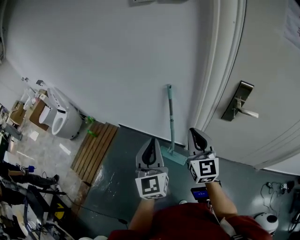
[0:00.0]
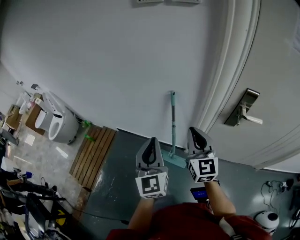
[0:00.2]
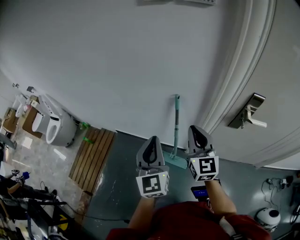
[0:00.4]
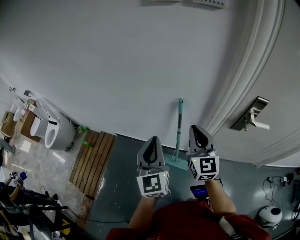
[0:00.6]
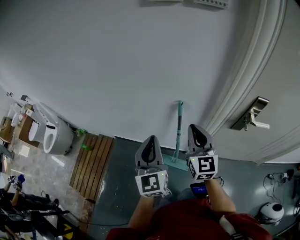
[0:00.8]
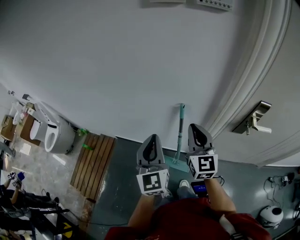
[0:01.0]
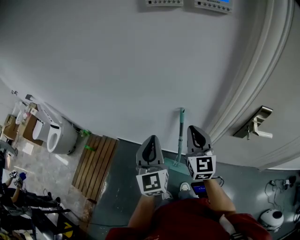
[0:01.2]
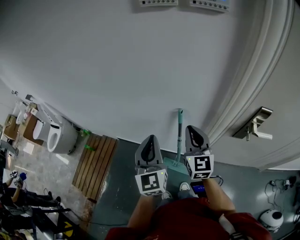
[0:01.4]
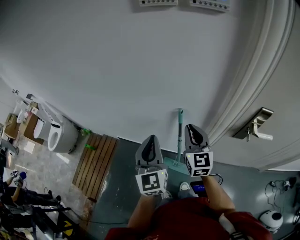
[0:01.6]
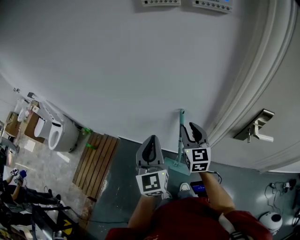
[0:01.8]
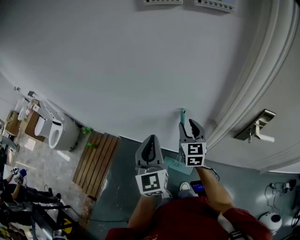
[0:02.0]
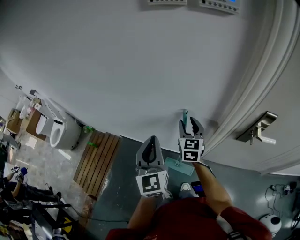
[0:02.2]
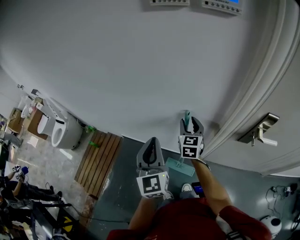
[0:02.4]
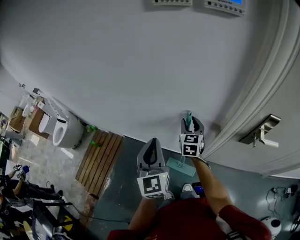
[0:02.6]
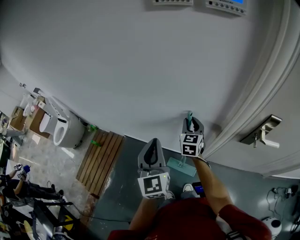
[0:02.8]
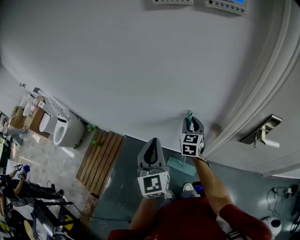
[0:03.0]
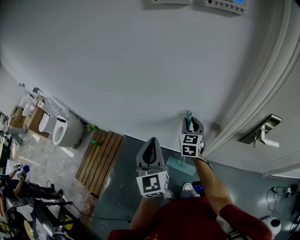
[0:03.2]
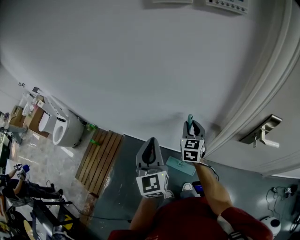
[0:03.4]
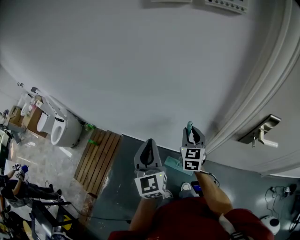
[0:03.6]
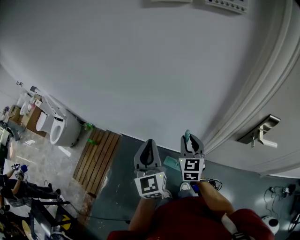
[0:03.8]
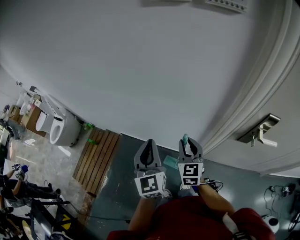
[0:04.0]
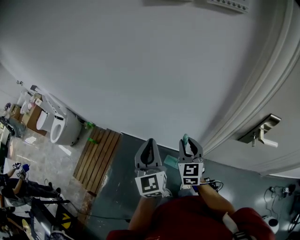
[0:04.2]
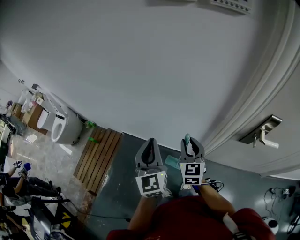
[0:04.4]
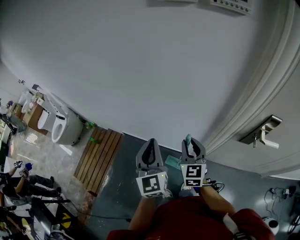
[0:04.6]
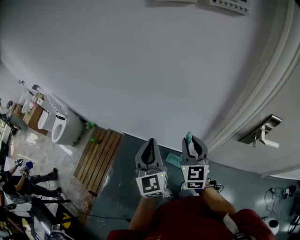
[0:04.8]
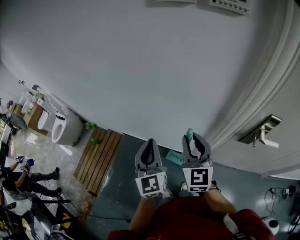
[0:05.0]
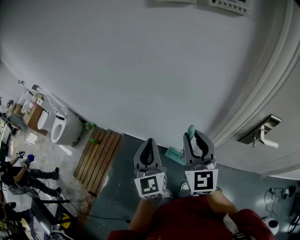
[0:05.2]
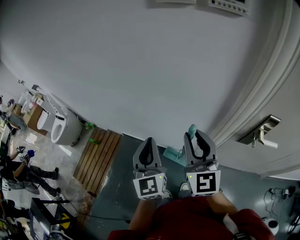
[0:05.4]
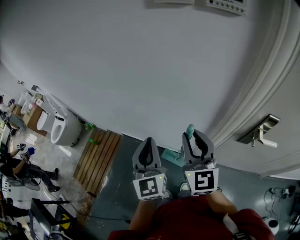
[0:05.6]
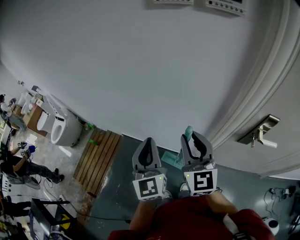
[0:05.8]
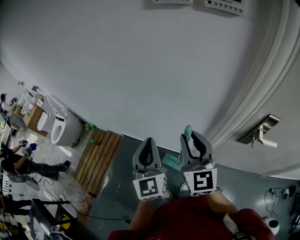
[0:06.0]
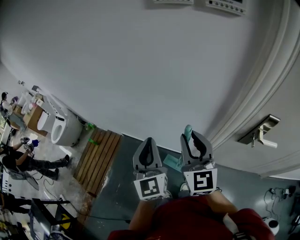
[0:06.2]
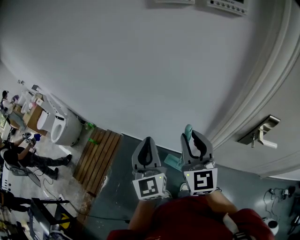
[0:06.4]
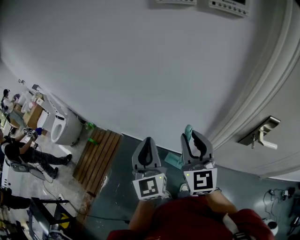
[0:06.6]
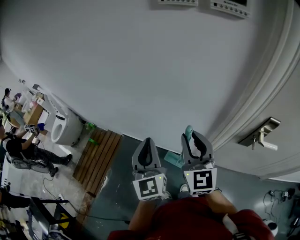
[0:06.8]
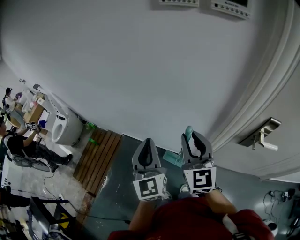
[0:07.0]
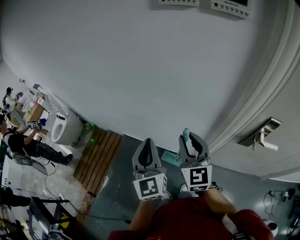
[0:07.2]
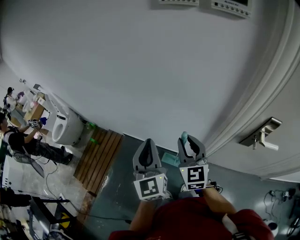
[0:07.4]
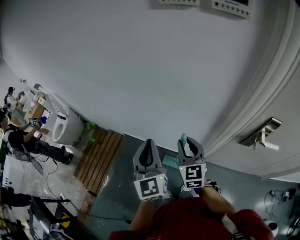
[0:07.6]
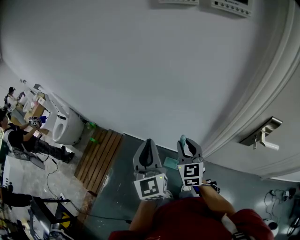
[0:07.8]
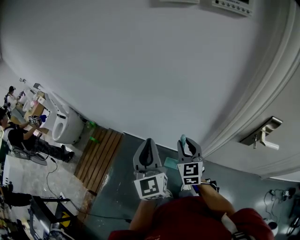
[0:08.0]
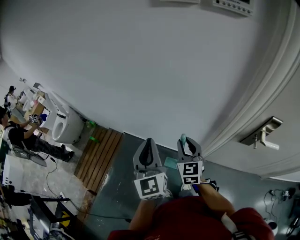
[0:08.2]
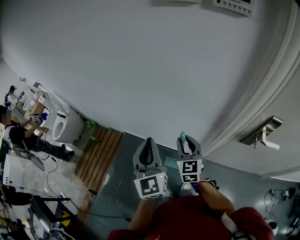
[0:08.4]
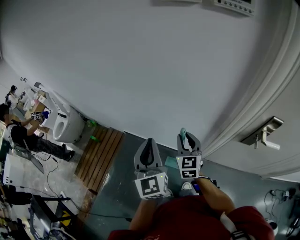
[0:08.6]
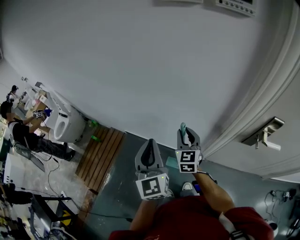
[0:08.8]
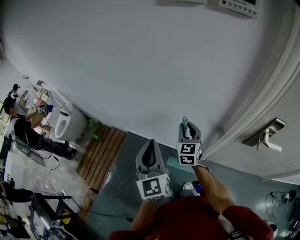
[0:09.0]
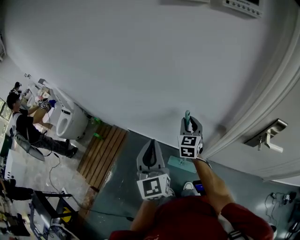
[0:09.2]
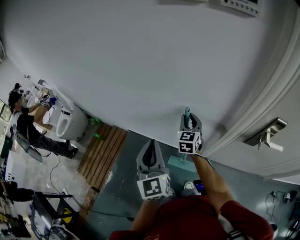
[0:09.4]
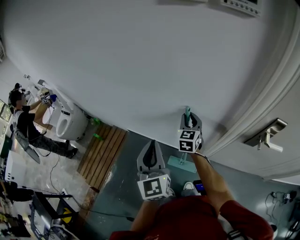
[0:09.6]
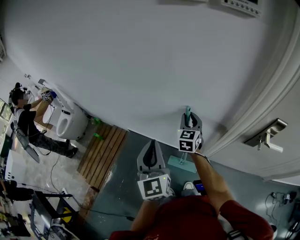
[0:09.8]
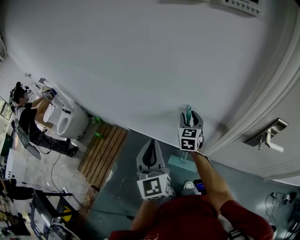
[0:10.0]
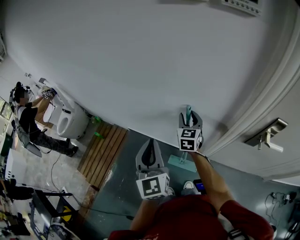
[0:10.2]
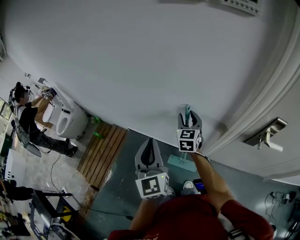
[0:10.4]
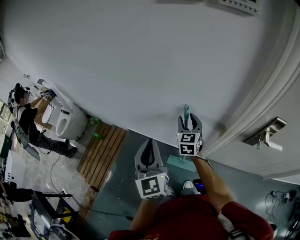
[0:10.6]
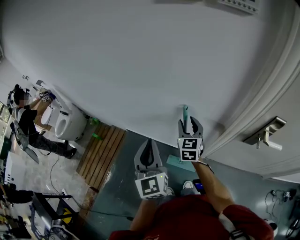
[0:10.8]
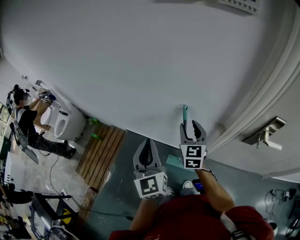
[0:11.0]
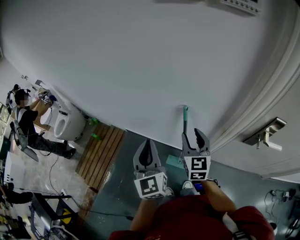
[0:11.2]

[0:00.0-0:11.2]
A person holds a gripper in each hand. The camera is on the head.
0:00.0 to 0:01.6: The grippers both shift forward by approximately 20 cm.
0:01.6 to 0:03.2: The right gripper shifts roughly 15 cm forward and downward, and opens.
0:03.2 to 0:04.8: The right gripper shifts roughly 15 cm backward and upward.
0:04.8 to 0:06.4: The right gripper is displaced upward by roughly 10 cm.
0:06.4 to 0:08.0: The right gripper shifts about 15 cm downward.
0:08.0 to 0:09.6: The right gripper is displaced forward by about 15 cm.
0:09.6 to 0:11.2: The right gripper is displaced backward by some 10 cm.

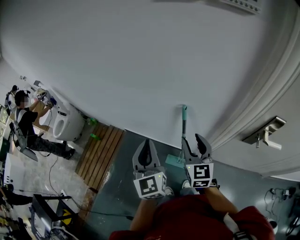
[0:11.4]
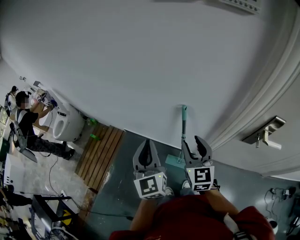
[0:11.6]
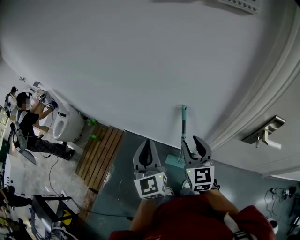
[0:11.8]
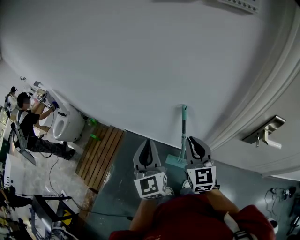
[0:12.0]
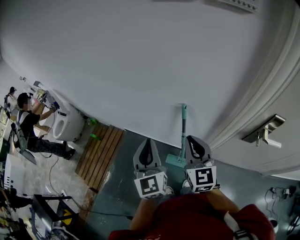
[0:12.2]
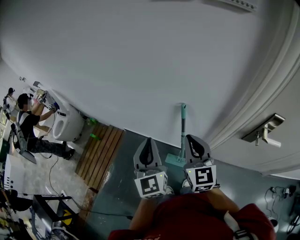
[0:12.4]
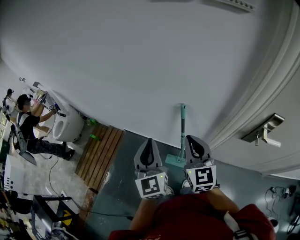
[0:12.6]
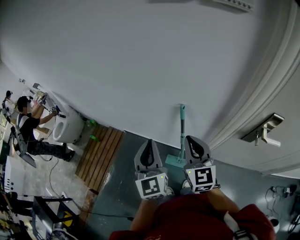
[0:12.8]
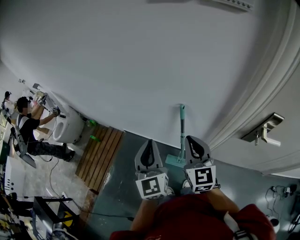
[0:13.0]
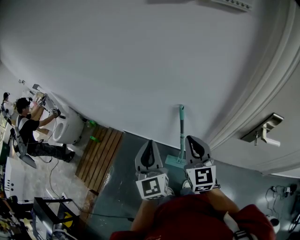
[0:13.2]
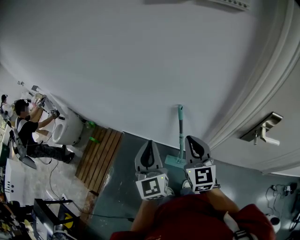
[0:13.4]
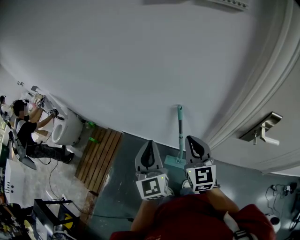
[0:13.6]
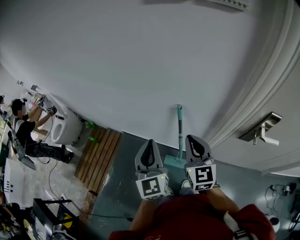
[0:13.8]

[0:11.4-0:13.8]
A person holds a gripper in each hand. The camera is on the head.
0:11.4 to 0:12.6: The right gripper changes place by some 5 cm, and closes up.
0:12.6 to 0:13.8: The grippers make only small movements.

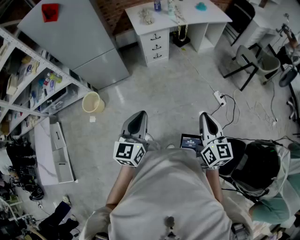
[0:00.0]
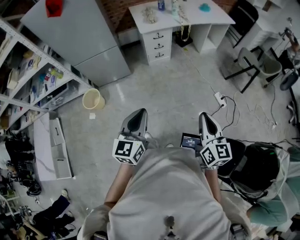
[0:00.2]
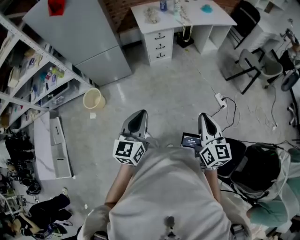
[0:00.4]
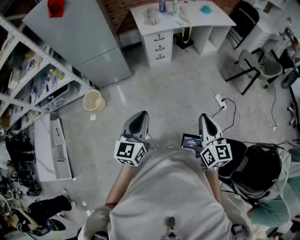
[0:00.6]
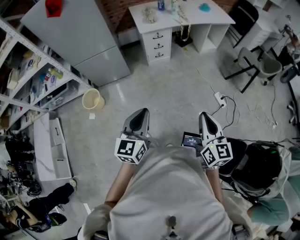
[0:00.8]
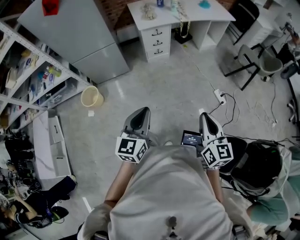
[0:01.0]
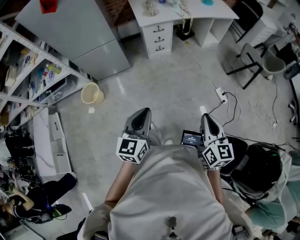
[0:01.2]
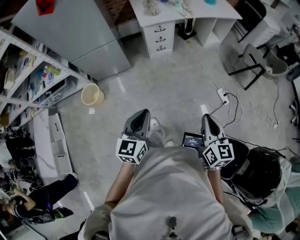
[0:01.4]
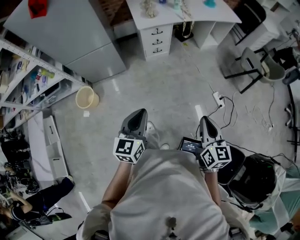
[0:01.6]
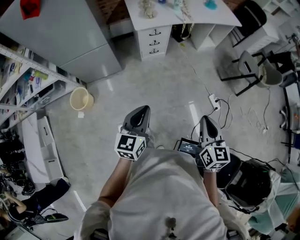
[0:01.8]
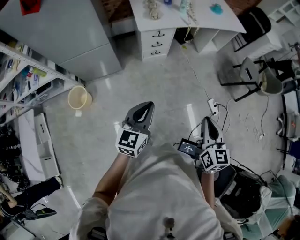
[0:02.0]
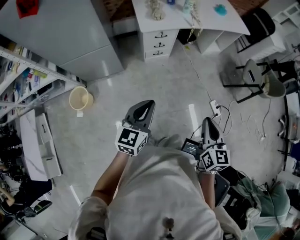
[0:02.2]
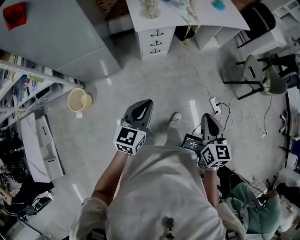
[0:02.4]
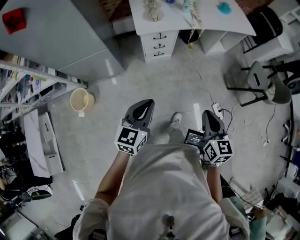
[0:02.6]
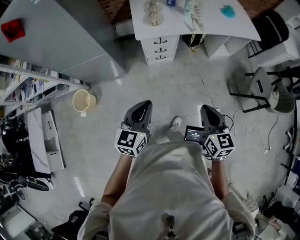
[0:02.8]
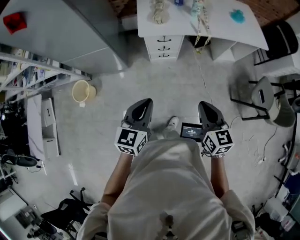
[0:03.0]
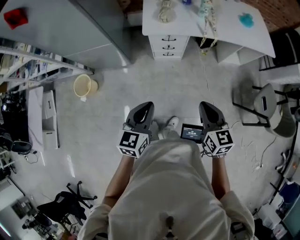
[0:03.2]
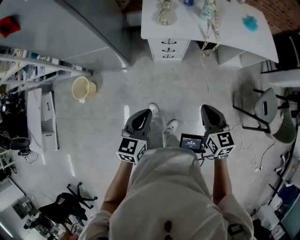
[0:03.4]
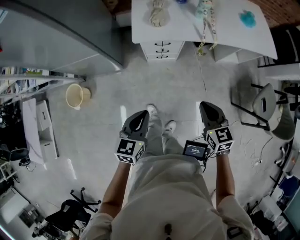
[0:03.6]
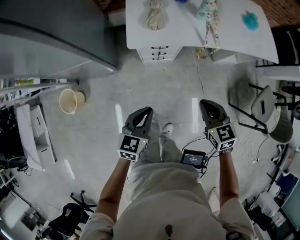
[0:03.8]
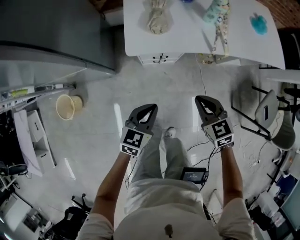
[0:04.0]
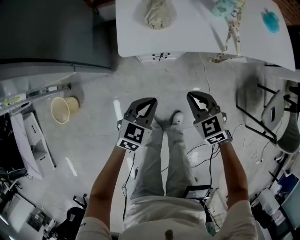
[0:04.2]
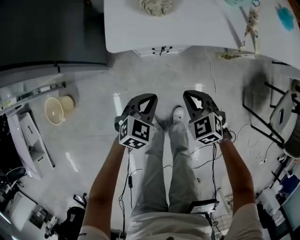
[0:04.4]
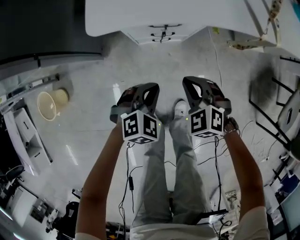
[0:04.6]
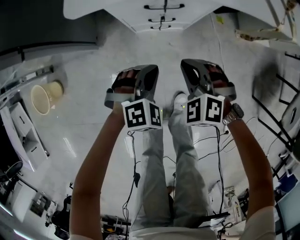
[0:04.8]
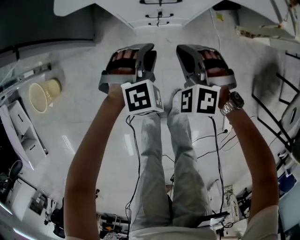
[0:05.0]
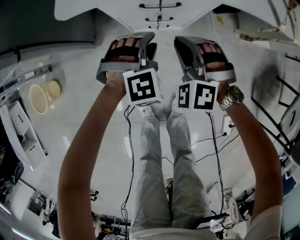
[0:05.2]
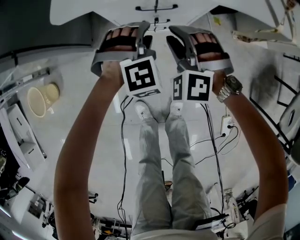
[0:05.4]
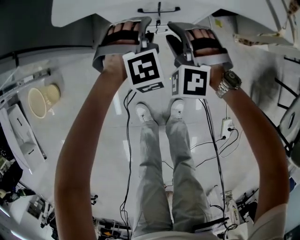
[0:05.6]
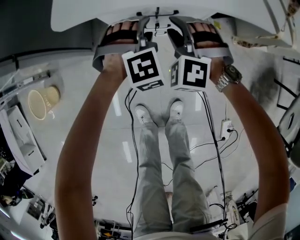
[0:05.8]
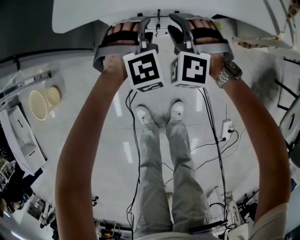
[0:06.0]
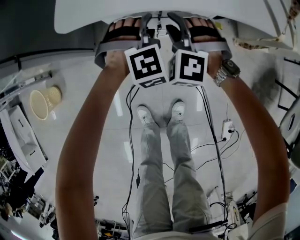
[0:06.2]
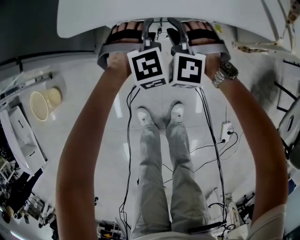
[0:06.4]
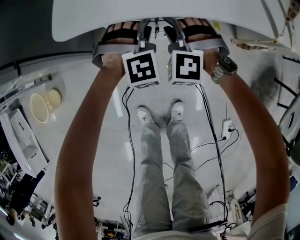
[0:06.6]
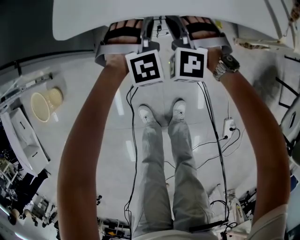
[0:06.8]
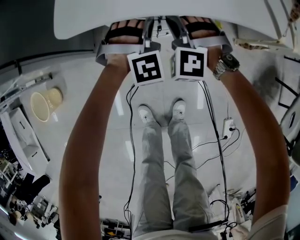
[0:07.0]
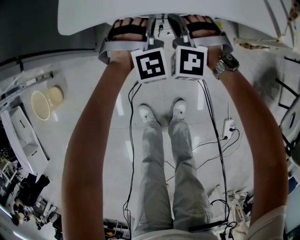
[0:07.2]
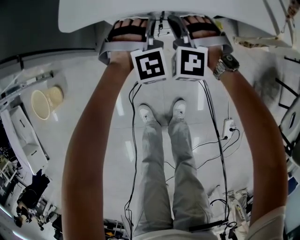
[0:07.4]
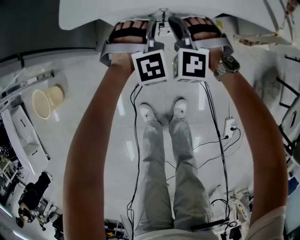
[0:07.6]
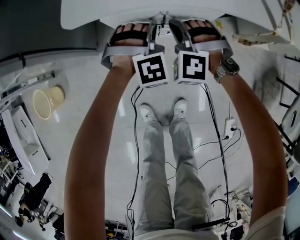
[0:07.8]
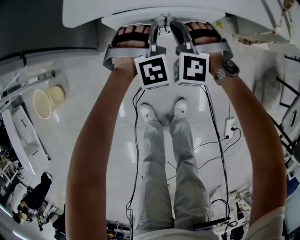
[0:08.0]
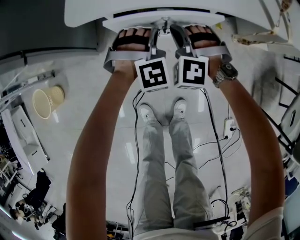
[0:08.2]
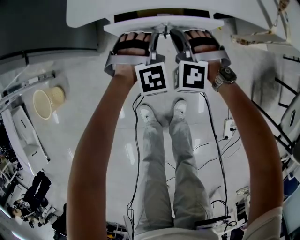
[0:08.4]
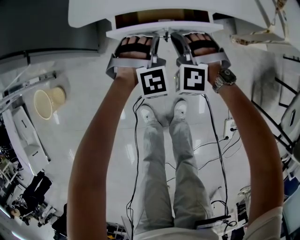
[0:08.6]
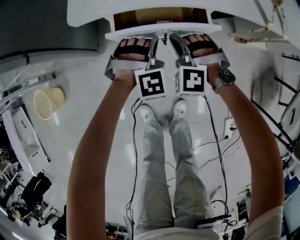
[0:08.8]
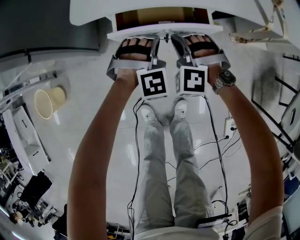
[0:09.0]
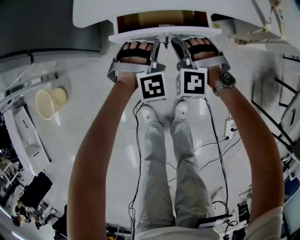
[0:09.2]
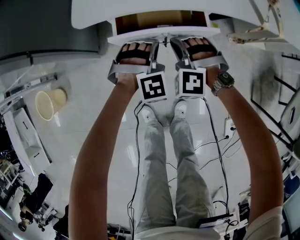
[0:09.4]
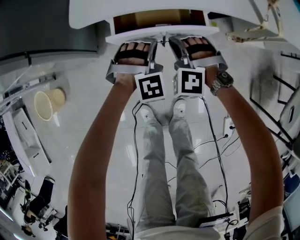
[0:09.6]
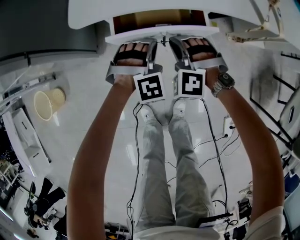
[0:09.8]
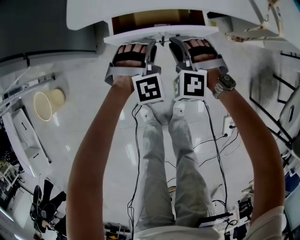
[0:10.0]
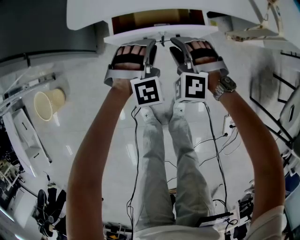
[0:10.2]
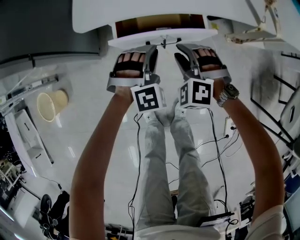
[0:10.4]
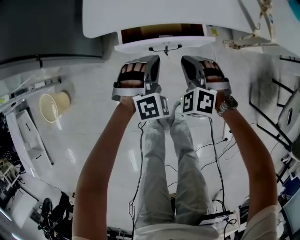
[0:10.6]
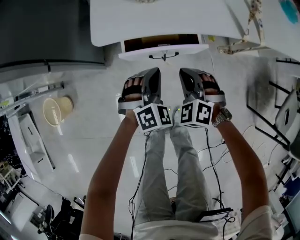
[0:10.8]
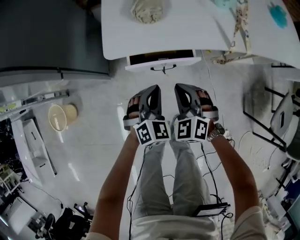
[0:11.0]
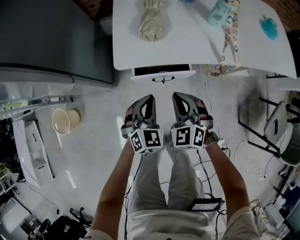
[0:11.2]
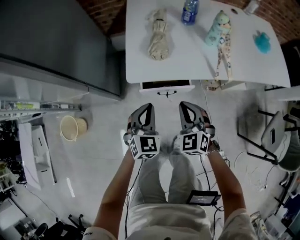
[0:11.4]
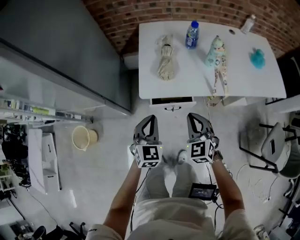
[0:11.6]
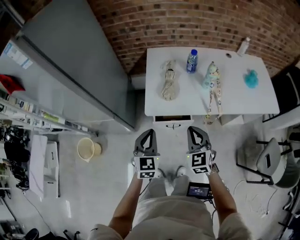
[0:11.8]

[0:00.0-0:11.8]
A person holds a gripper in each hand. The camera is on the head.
0:00.0 to 0:01.4: The left gripper moves some 5 cm. The right gripper changes place by approximately 5 cm.
0:01.4 to 0:03.0: The two grippers go about 40 cm forward. The right gripper rotates approximately 20 degrees.
0:03.0 to 0:04.4: The grippers both shift downward and forward by approximately 50 cm. The left gripper swivels about 40 degrees; the right gripper rotates about 50 degrees.
0:04.4 to 0:06.0: Both grippers move forward and downward, approximately 20 cm. The right gripper twists about 40 degrees counterclockwise, seen from behind, and opens, while the left gripper twists some 50 degrees clockwise, seen from behind, and opens.
0:06.0 to 0:07.4: The right gripper closes up; the left gripper closes its fingers.
0:07.4 to 0:08.8: Both grippers move backward, approximately 5 cm.
0:08.8 to 0:10.4: The right gripper opens up.
0:10.4 to 0:11.8: The two grippers go some 40 cm upward. The right gripper rolls clockwise, seen from behind, by about 40 degrees, and closes, while the left gripper twists roughly 60 degrees counterclockwise, seen from behind.
